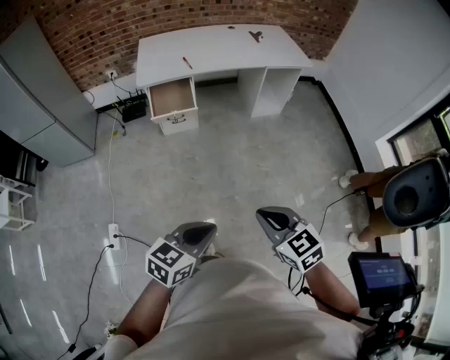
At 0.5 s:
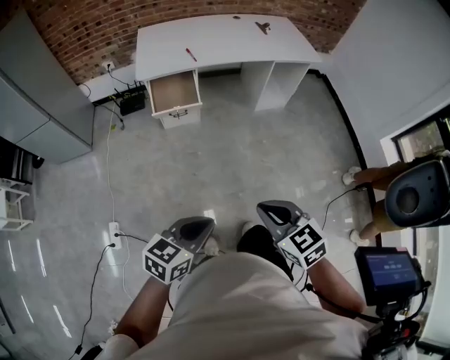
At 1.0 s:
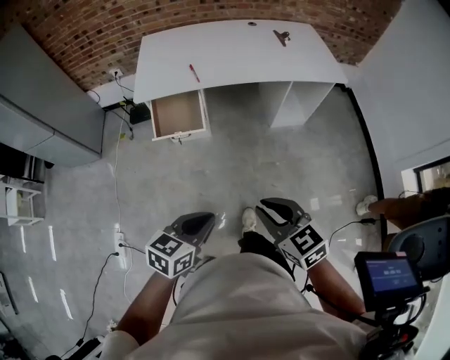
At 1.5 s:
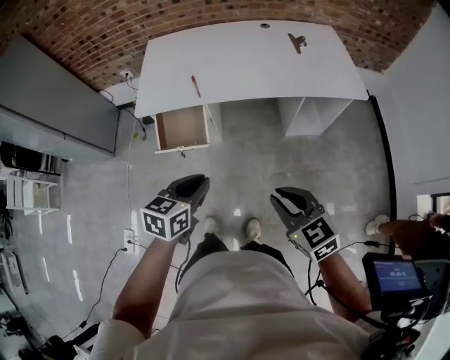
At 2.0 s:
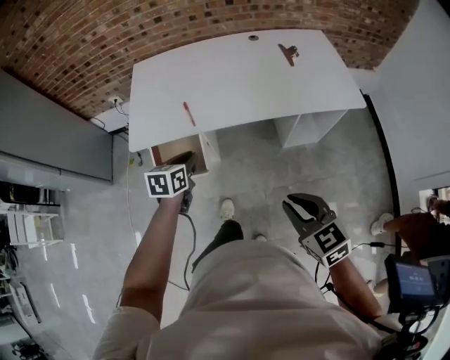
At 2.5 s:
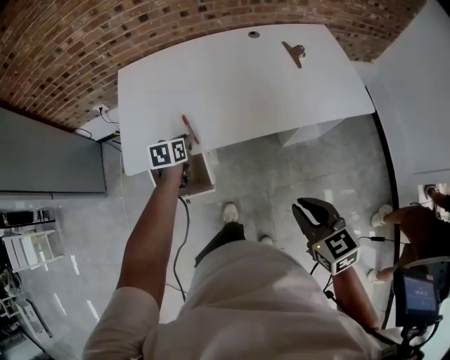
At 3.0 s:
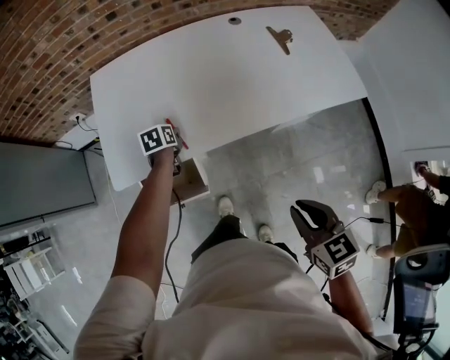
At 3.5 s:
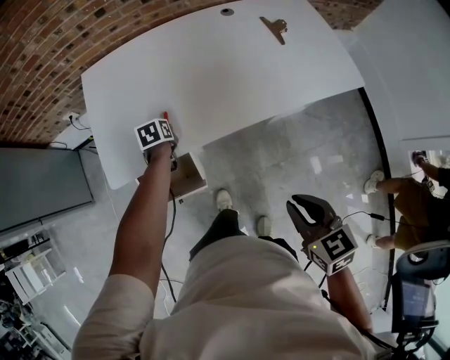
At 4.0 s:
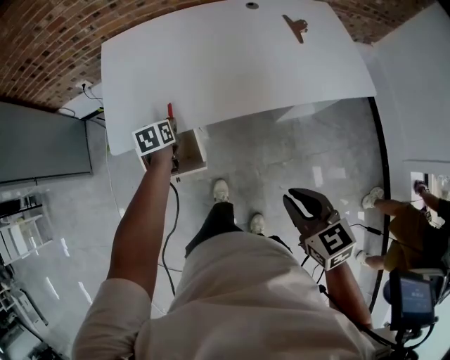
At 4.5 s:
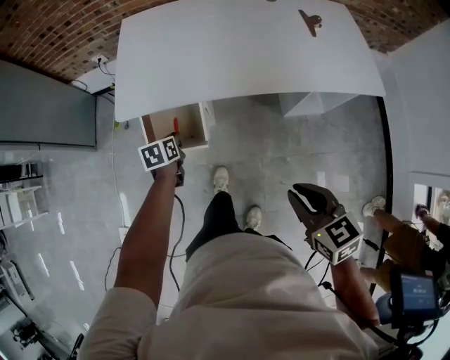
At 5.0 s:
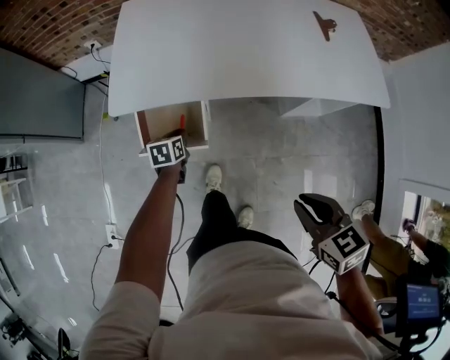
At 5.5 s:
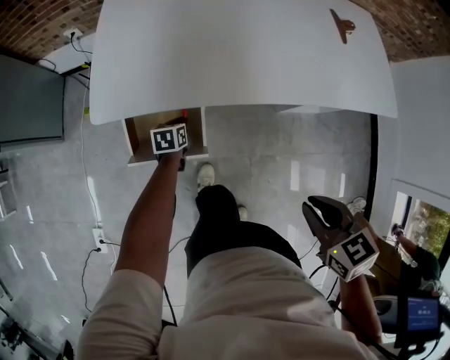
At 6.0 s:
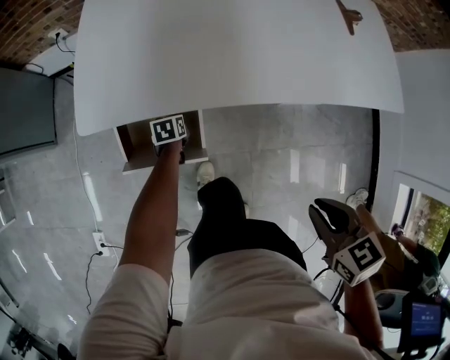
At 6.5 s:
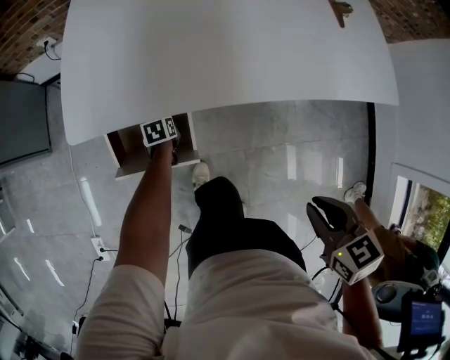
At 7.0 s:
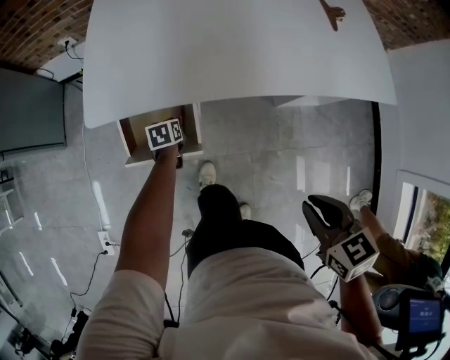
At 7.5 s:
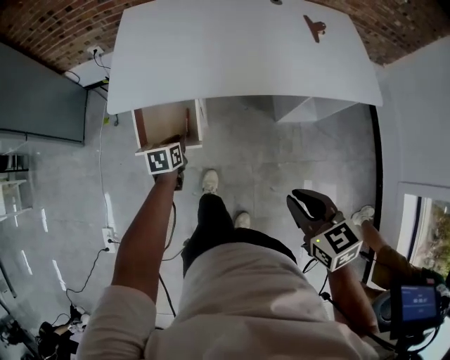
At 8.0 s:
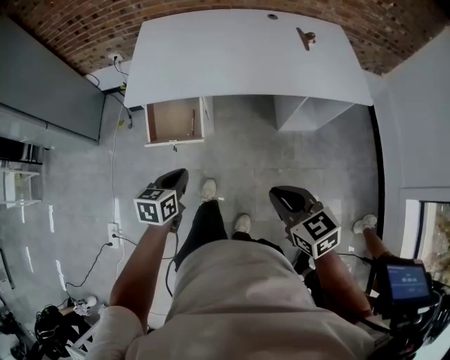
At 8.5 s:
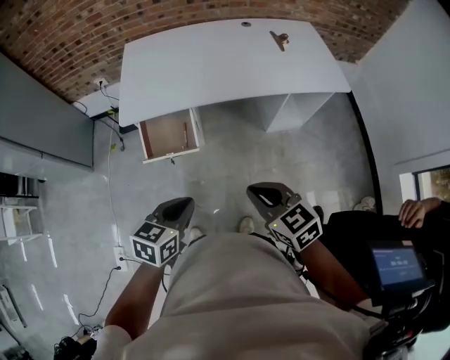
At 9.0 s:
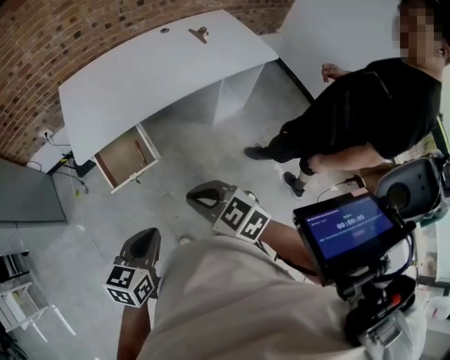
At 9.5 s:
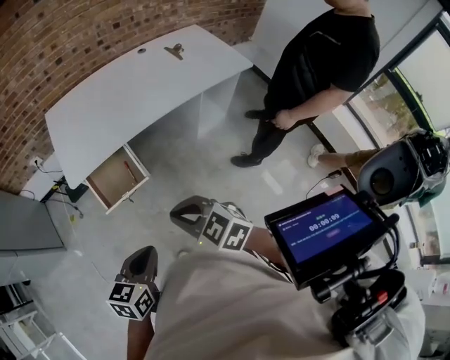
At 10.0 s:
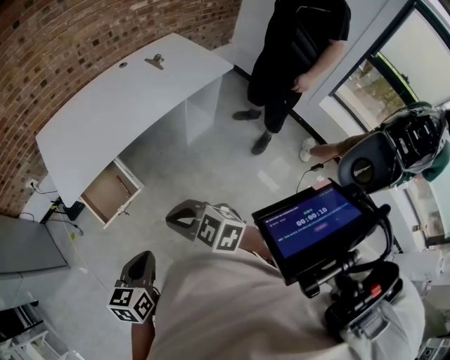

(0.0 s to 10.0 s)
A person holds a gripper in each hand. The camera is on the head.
0.0 s - 2.0 s: The pair of grippers is taken forward, roughly 60 cm. The left gripper swivels about 30 degrees.
2.0 s - 4.0 s: The left gripper goes about 25 cm forward, downward and to the left. Meanwhile the right gripper moves forward, about 10 cm.
4.0 s - 6.0 s: The left gripper goes approximately 30 cm downward; the right gripper moves downward, approximately 10 cm.
6.0 s - 8.0 s: The left gripper is displaced upward and backward by about 50 cm, and changes its angle by approximately 20 degrees. Meanwhile the right gripper travels backward and upward by roughly 20 cm, and changes its angle by about 20 degrees.
8.0 s - 10.0 s: The left gripper goes about 20 cm backward and upward, and rotates about 30 degrees; the right gripper goes roughly 20 cm to the left.

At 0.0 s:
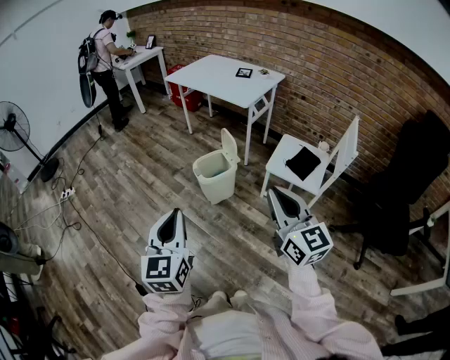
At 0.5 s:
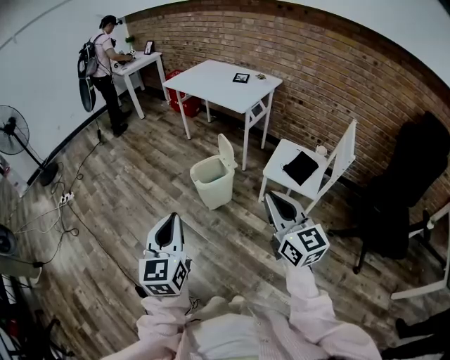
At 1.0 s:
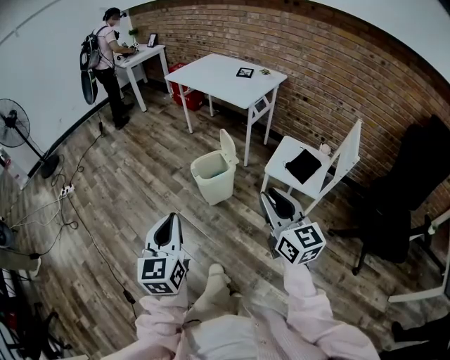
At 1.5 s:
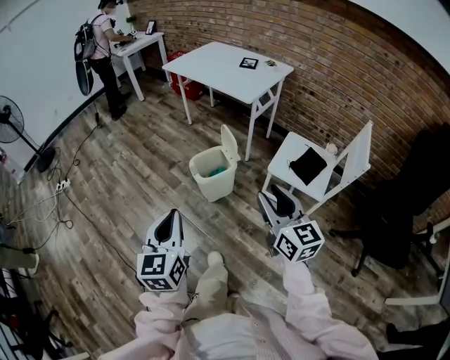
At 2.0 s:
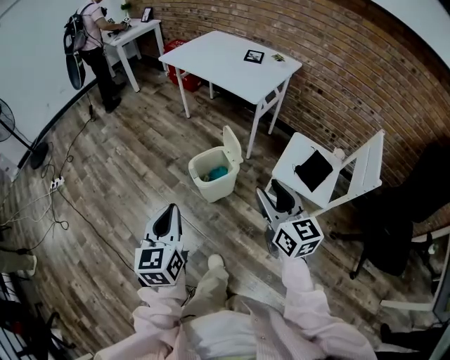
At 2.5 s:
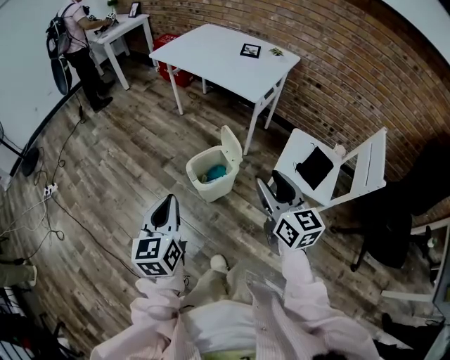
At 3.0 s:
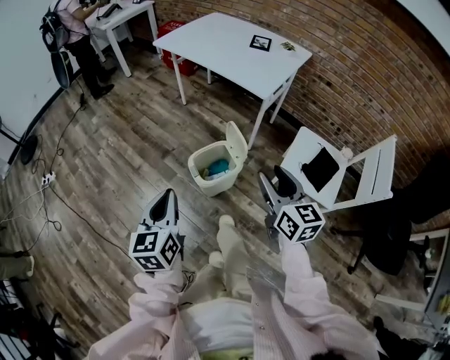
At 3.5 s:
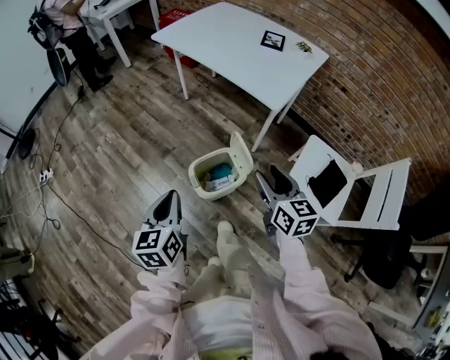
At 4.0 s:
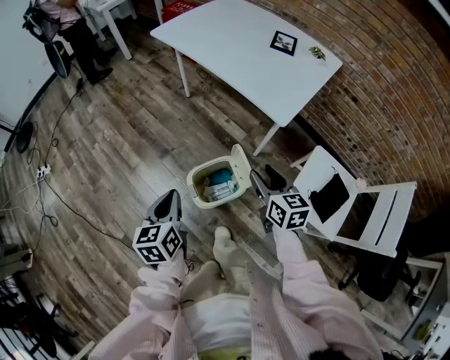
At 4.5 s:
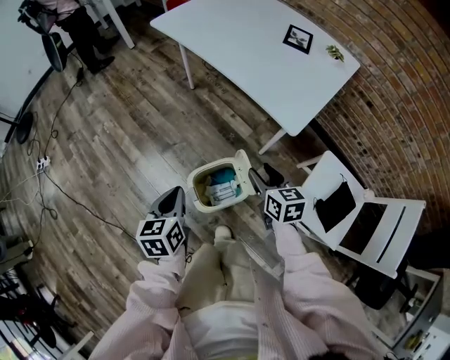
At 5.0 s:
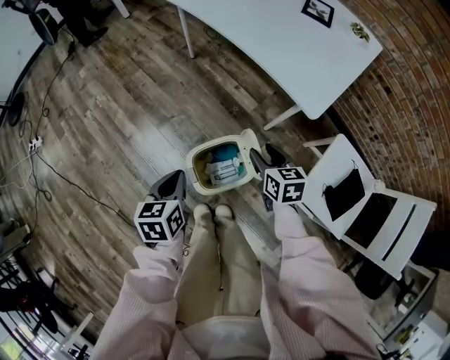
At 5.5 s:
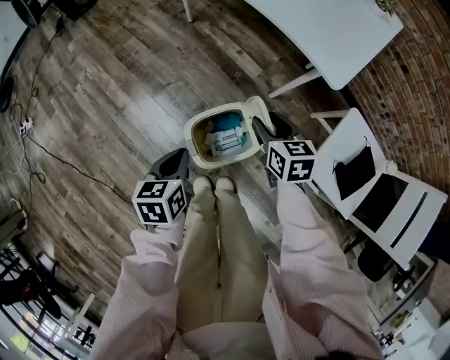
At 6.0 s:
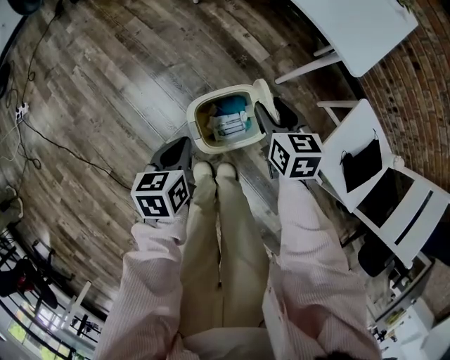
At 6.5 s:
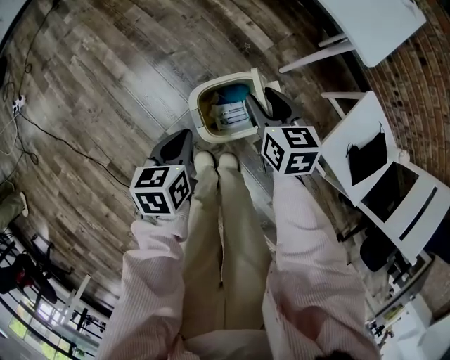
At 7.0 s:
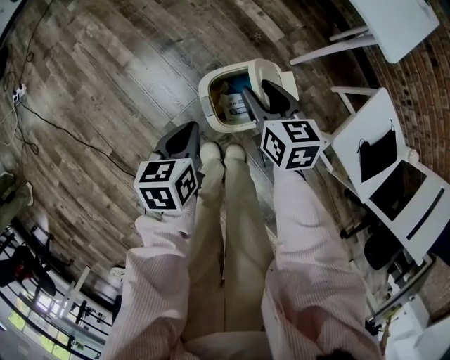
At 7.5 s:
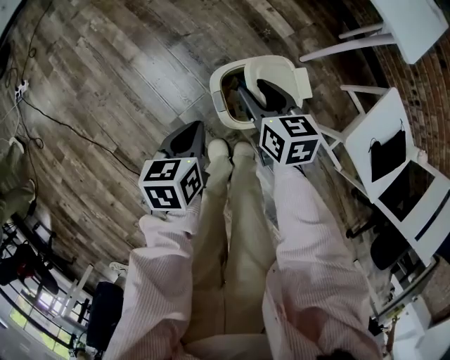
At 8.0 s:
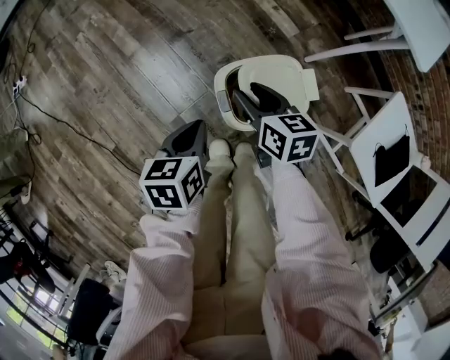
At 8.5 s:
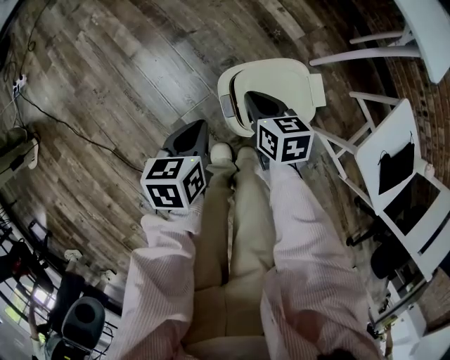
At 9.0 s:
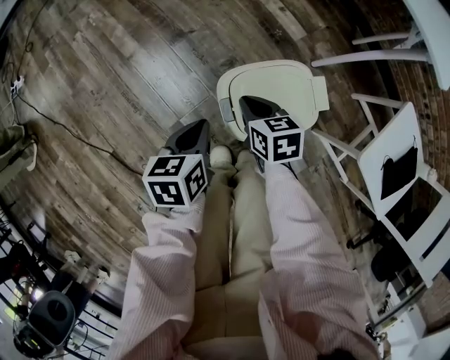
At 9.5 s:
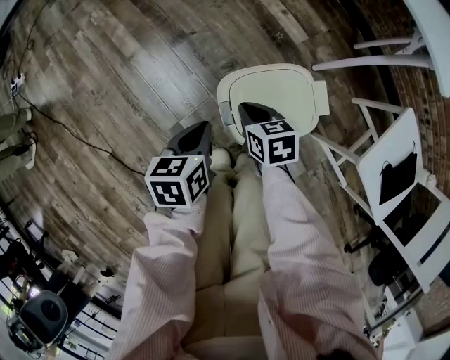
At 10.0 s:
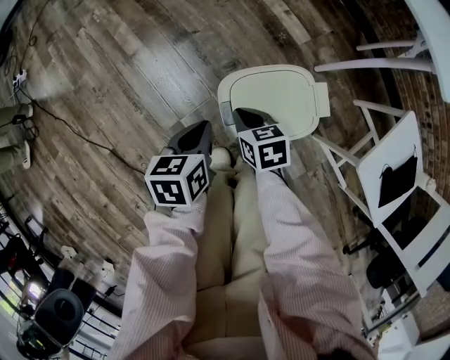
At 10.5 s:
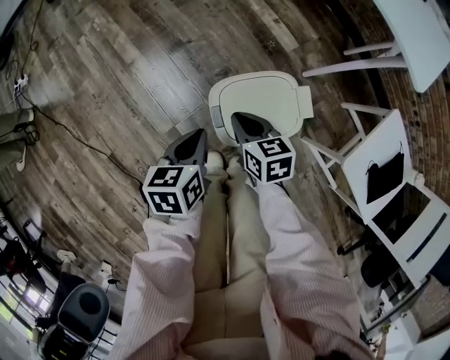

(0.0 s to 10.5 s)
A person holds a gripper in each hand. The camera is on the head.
0.0 s - 2.0 s: The right gripper heads forward and downward, covering some 25 cm, and opens up; the left gripper goes roughly 20 cm forward.
2.0 s - 4.0 s: The grippers both shift forward and downward by roughly 35 cm. The left gripper rotates about 20 degrees. The right gripper changes its angle by some 20 degrees.
4.0 s - 6.5 s: The right gripper is displaced downward and to the left by roughly 20 cm; the left gripper moves downward, approximately 20 cm.
6.5 s - 8.5 s: The left gripper travels downward and to the left by roughly 10 cm. The right gripper shifts about 20 cm downward and to the left, and closes.

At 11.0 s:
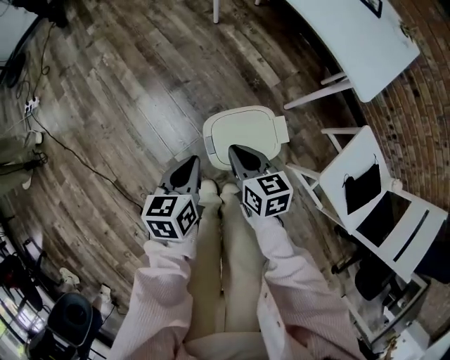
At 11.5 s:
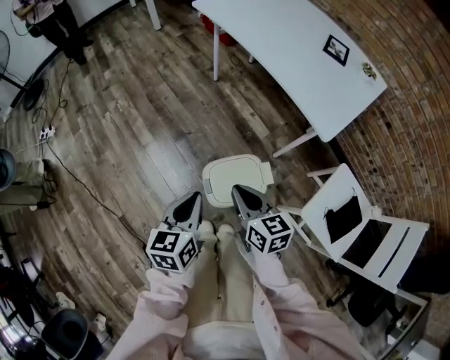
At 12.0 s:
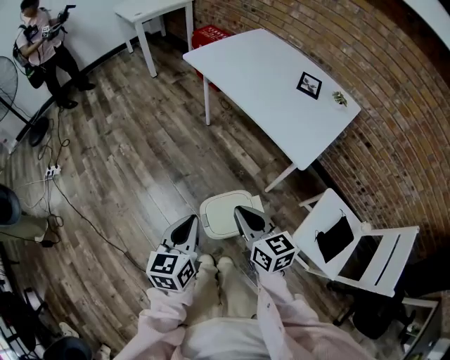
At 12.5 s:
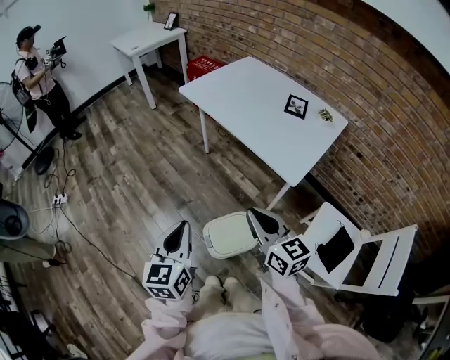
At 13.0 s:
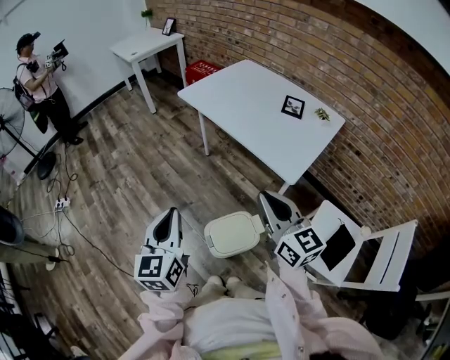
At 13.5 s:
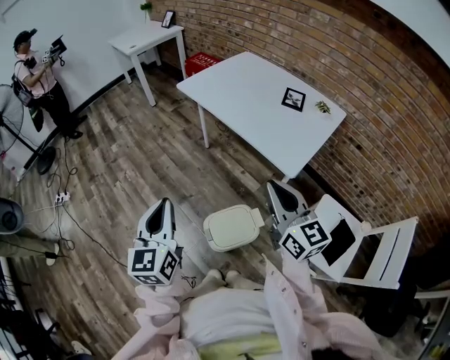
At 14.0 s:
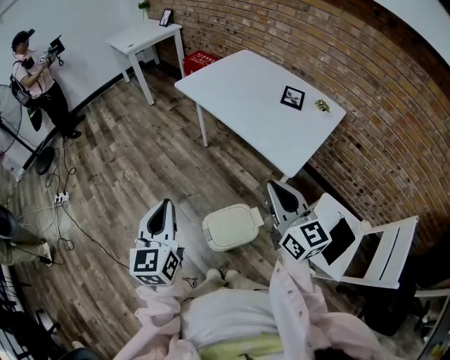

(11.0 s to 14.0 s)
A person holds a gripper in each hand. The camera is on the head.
11.0 s - 12.5 s: The grippers both shift upward by about 30 cm. The left gripper rotates roughly 30 degrees, while the right gripper rotates approximately 30 degrees.
12.5 s - 14.0 s: The right gripper is displaced upward and to the right by approximately 10 cm, while the left gripper heads upward, covering about 5 cm.

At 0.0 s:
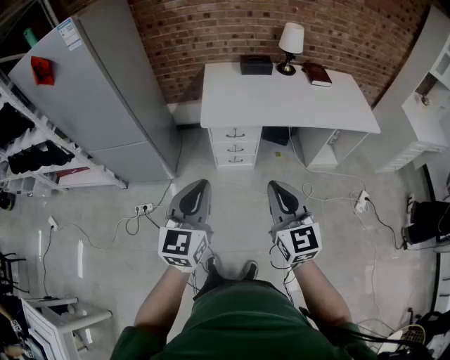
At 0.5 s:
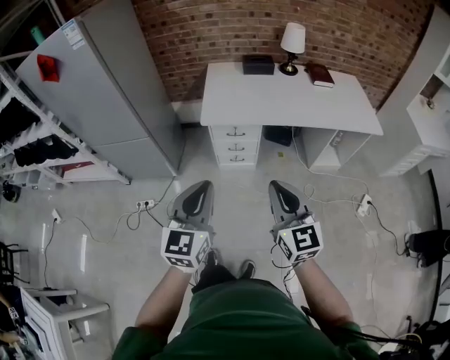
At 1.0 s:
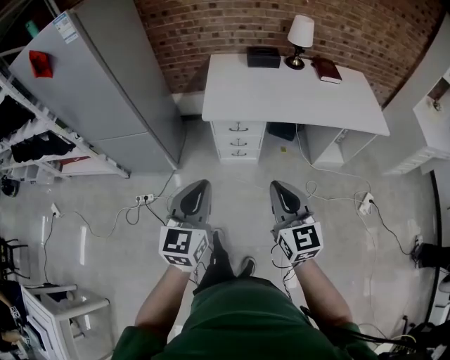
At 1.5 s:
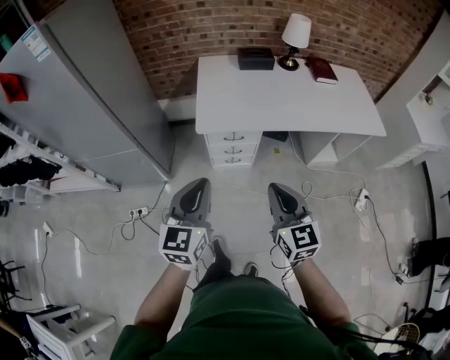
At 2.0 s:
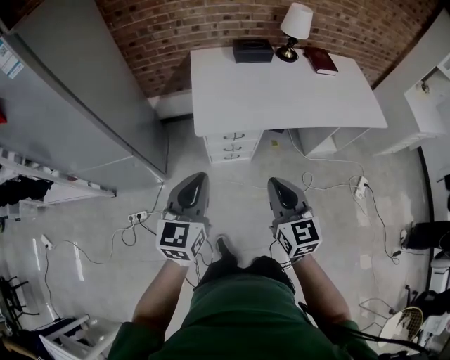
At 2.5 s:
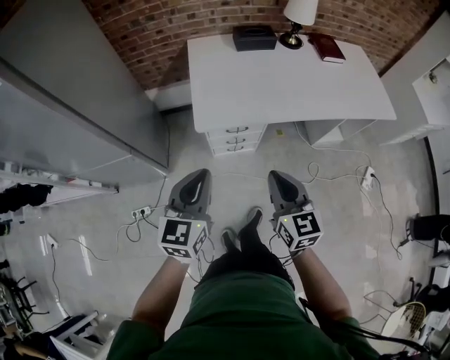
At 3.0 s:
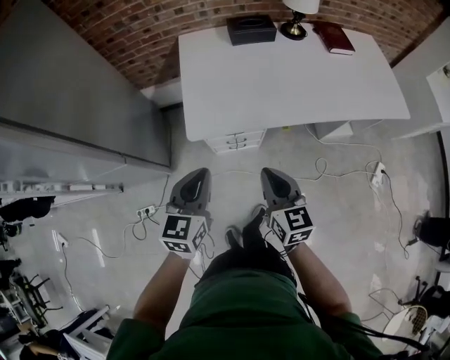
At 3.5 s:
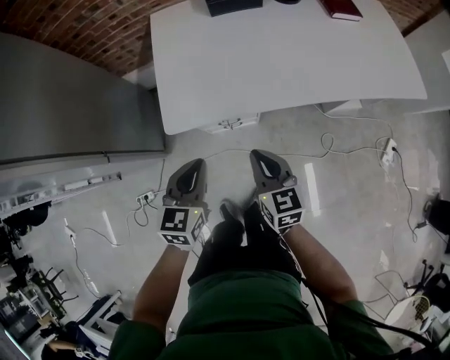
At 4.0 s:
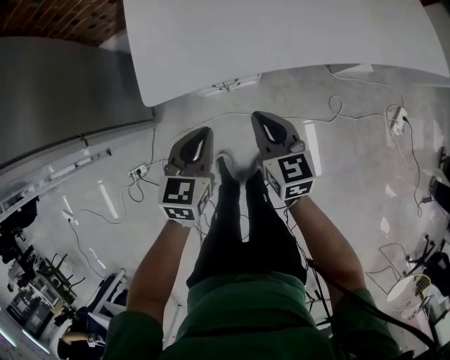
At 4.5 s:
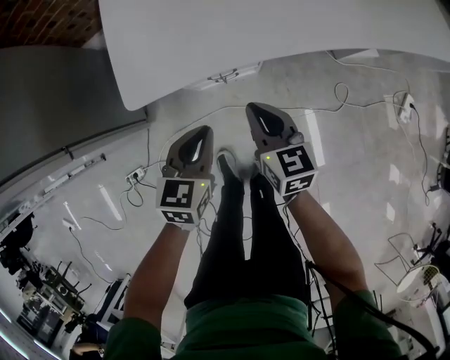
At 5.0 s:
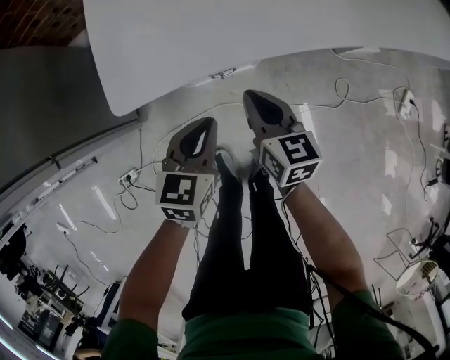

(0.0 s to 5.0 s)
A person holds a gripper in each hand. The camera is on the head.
0.0 s - 2.5 s: The grippers both shift forward and downward by some 25 cm.
2.5 s - 5.0 s: The right gripper goes about 40 cm downward and forward, and changes its angle by some 20 degrees, while the left gripper shifts some 40 cm downward, and turns by some 30 degrees.
